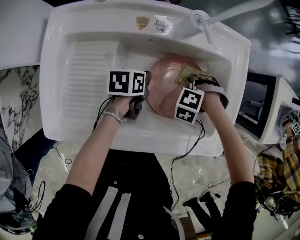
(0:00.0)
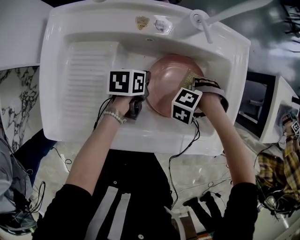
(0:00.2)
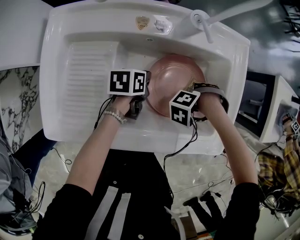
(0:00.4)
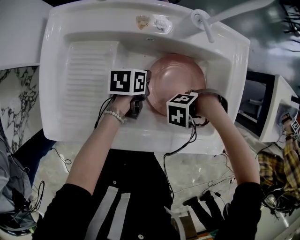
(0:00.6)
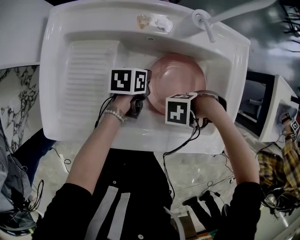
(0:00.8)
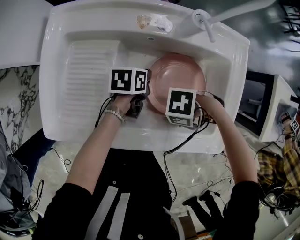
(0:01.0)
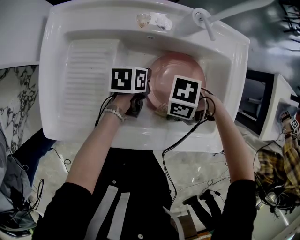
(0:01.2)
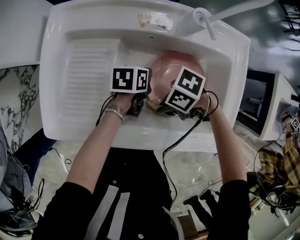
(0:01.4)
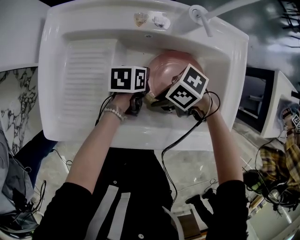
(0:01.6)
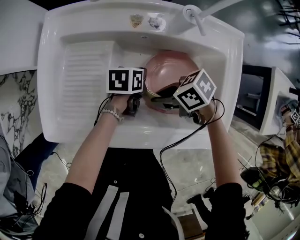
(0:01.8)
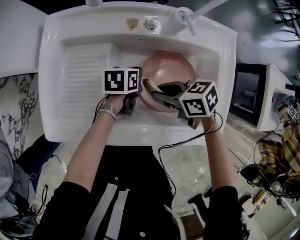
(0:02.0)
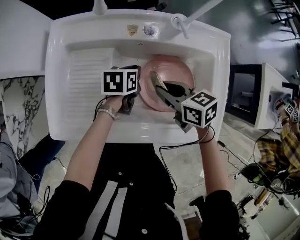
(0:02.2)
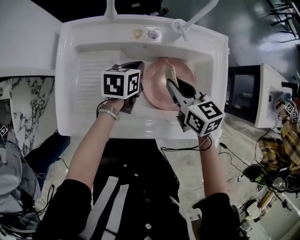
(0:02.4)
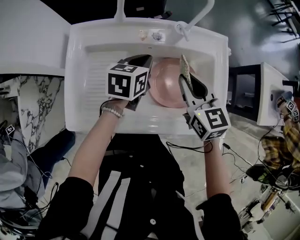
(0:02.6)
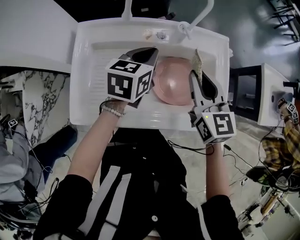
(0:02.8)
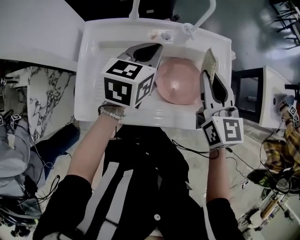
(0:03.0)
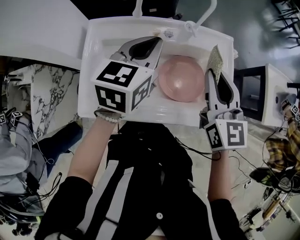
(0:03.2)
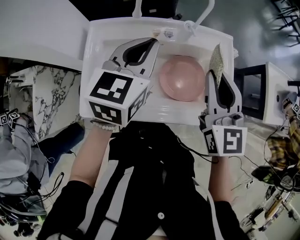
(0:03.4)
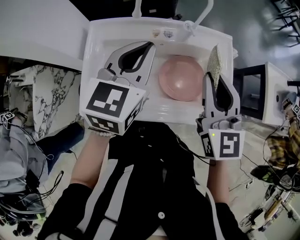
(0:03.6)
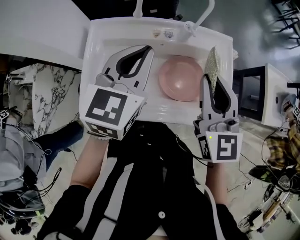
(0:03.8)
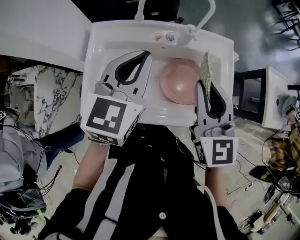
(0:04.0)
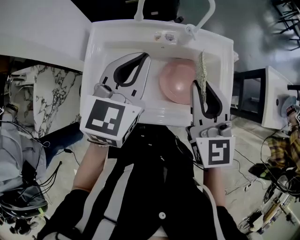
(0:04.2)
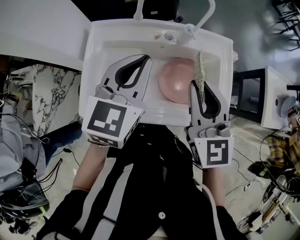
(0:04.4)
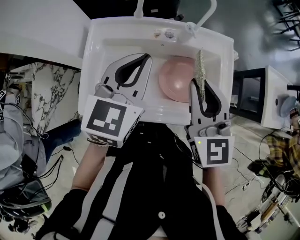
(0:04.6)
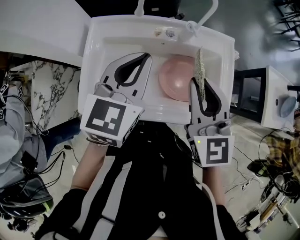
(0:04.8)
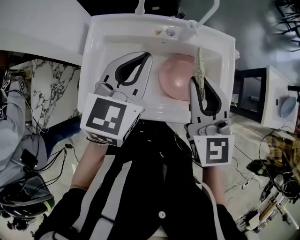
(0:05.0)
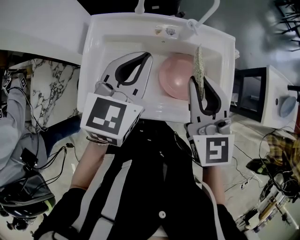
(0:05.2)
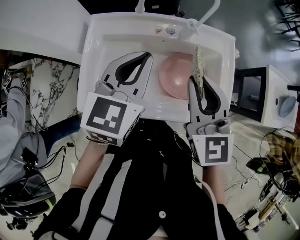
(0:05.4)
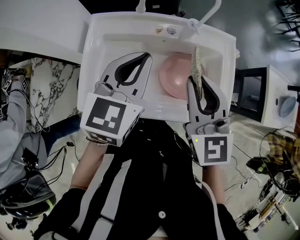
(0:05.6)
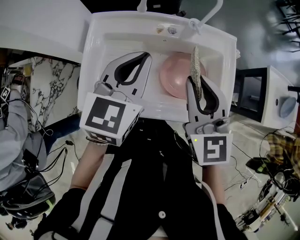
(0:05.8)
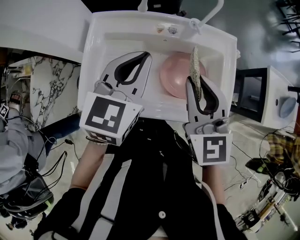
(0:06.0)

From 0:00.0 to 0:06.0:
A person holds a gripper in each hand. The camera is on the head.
From 0:00.0 to 0:01.6: The right gripper moves roughly 20 cm, and points its fingers about 30 degrees further upward.
From 0:01.6 to 0:03.0: Both grippers travel together upward, approximately 30 cm. The left gripper turns by about 40 degrees; the right gripper turns by some 100 degrees.
From 0:03.0 to 0:04.4: The left gripper shifts some 10 cm upward and backward. Meanwhile the right gripper travels upward by about 5 cm.
From 0:04.4 to 0:06.0: The grippers move only a little.

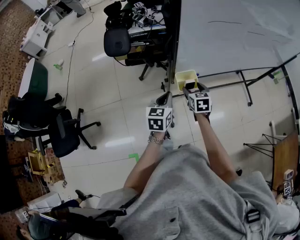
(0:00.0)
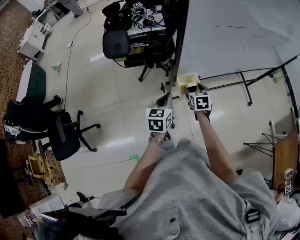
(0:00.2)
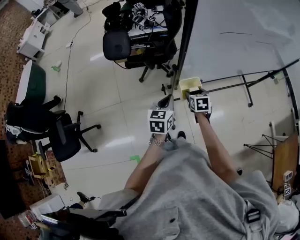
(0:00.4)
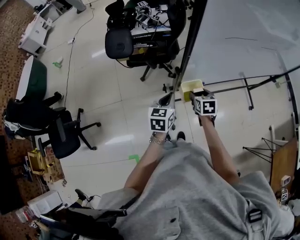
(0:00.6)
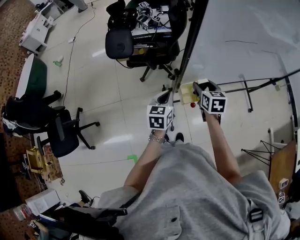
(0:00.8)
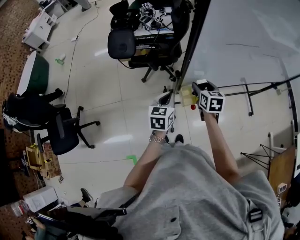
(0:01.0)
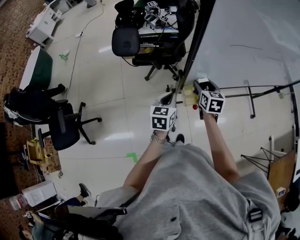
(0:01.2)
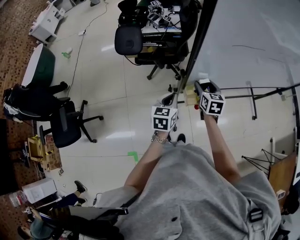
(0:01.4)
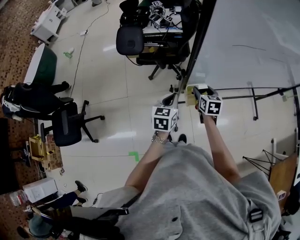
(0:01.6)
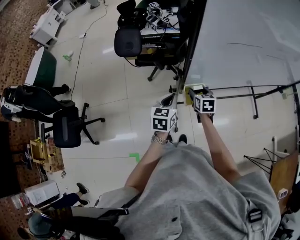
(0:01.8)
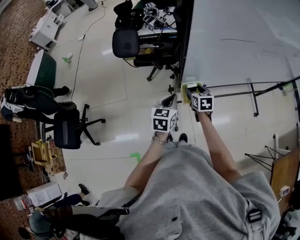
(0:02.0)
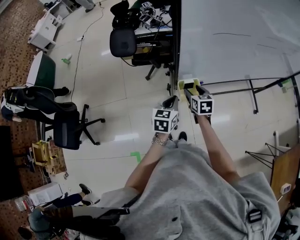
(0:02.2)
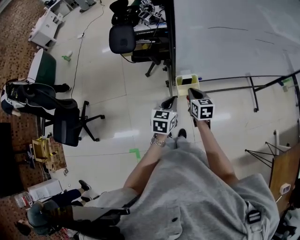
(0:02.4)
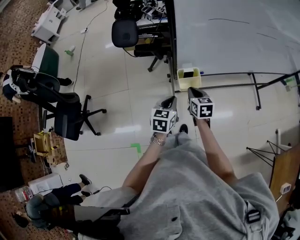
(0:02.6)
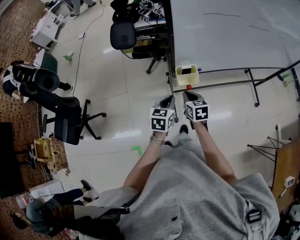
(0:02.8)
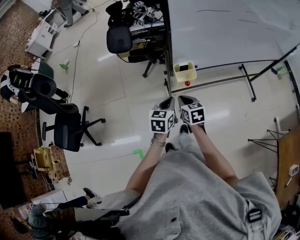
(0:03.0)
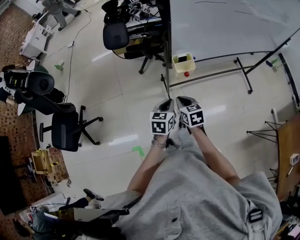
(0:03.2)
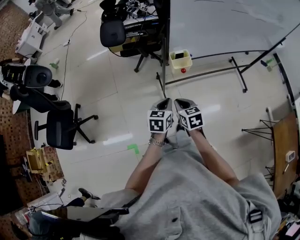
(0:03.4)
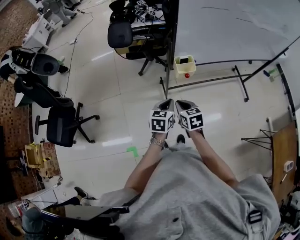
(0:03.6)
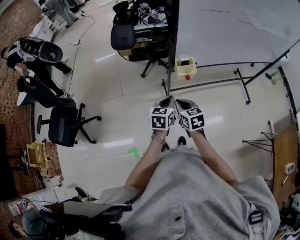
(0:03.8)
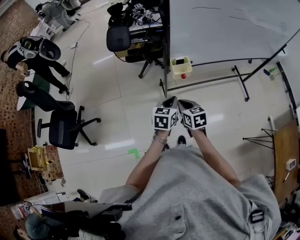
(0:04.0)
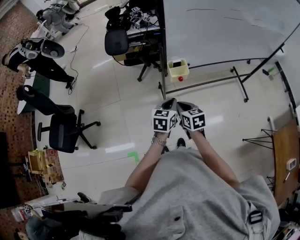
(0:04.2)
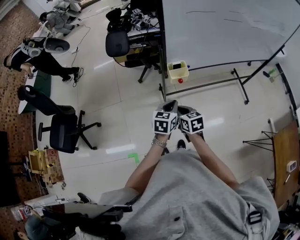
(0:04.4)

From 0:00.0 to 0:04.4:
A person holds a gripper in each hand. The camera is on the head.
From 0:00.0 to 0:01.4: Both grippers move forward, approximately 10 cm.
From 0:01.4 to 0:03.0: The two grippers go some 20 cm backward. The right gripper closes up.
From 0:03.0 to 0:04.4: The right gripper moves backward, about 10 cm; the left gripper goes roughly 5 cm backward.

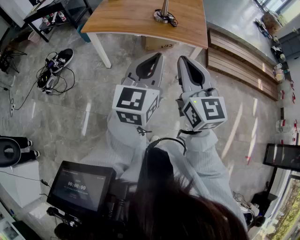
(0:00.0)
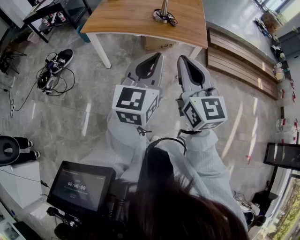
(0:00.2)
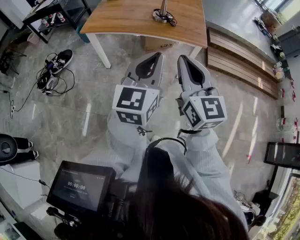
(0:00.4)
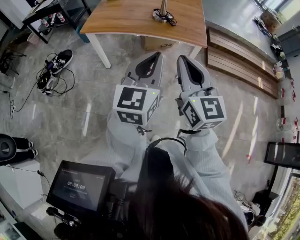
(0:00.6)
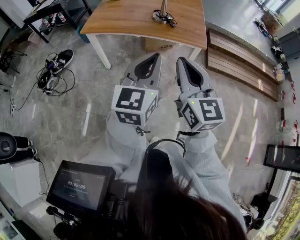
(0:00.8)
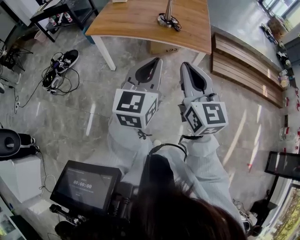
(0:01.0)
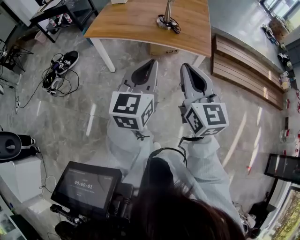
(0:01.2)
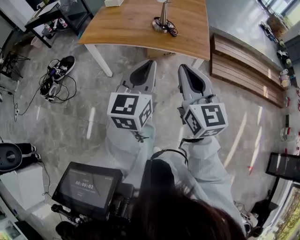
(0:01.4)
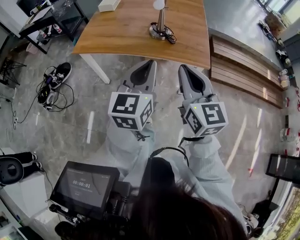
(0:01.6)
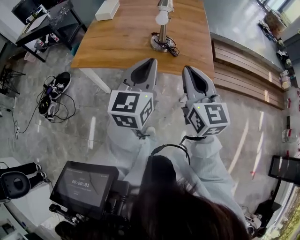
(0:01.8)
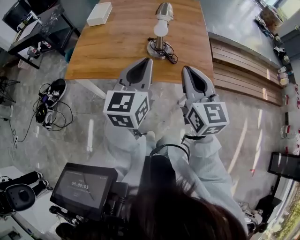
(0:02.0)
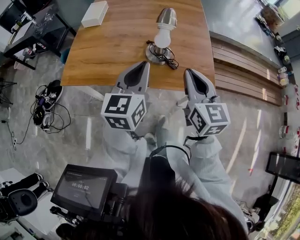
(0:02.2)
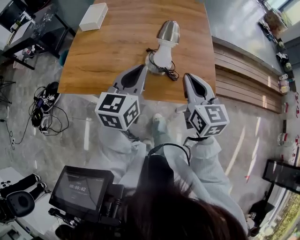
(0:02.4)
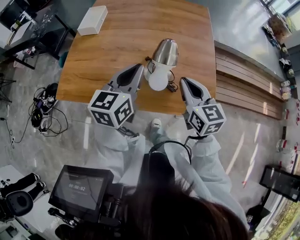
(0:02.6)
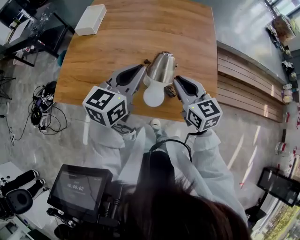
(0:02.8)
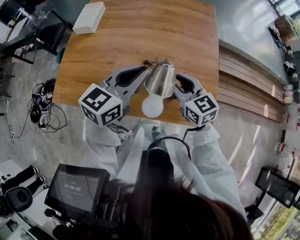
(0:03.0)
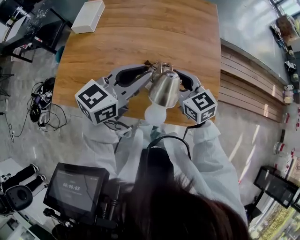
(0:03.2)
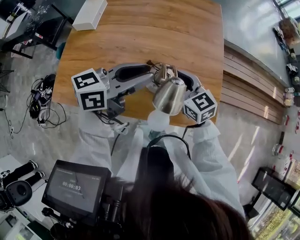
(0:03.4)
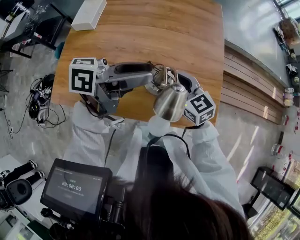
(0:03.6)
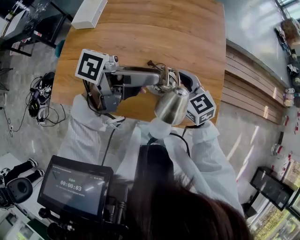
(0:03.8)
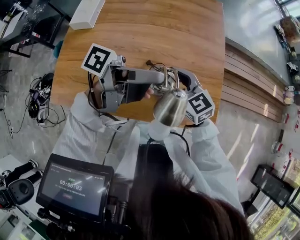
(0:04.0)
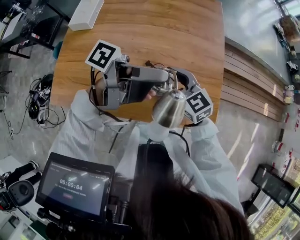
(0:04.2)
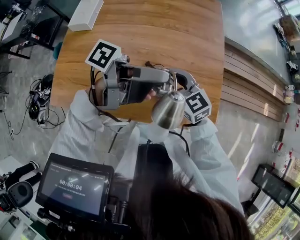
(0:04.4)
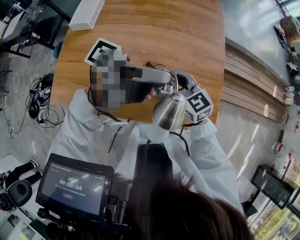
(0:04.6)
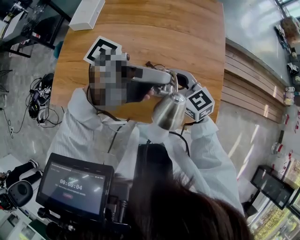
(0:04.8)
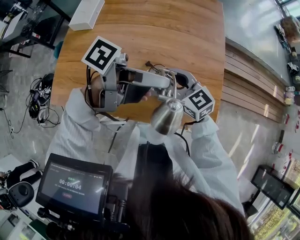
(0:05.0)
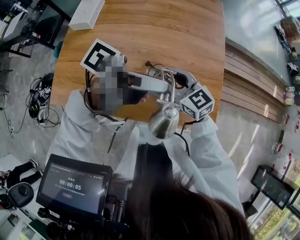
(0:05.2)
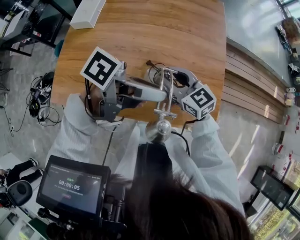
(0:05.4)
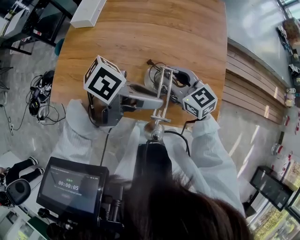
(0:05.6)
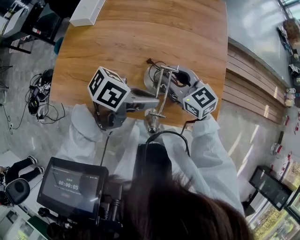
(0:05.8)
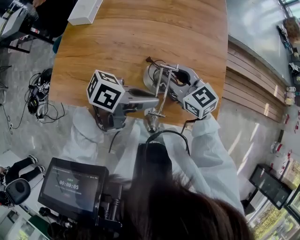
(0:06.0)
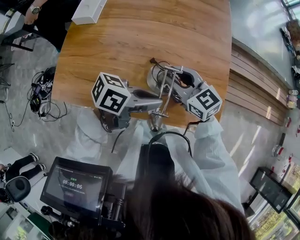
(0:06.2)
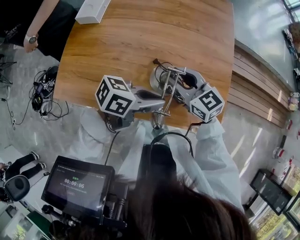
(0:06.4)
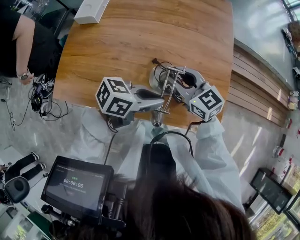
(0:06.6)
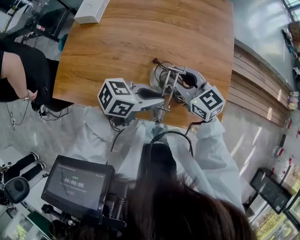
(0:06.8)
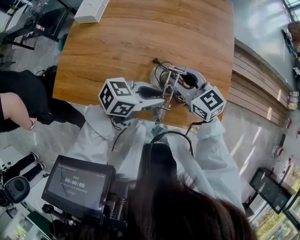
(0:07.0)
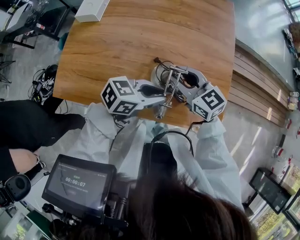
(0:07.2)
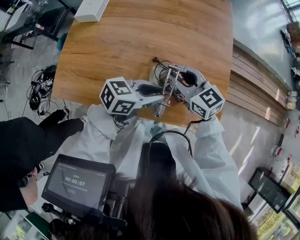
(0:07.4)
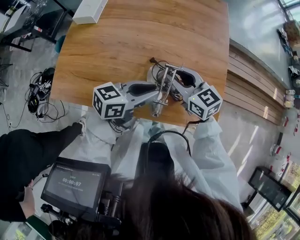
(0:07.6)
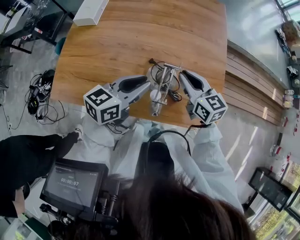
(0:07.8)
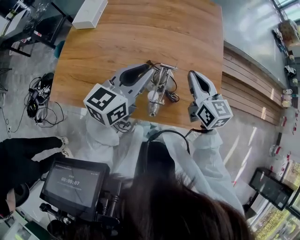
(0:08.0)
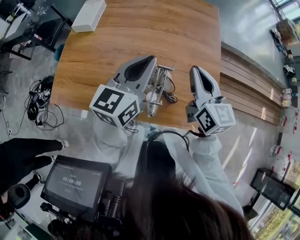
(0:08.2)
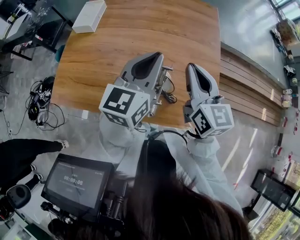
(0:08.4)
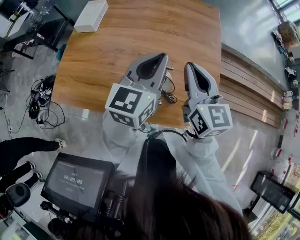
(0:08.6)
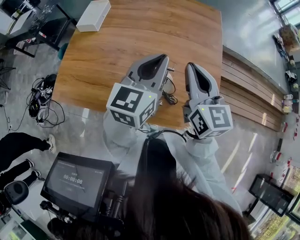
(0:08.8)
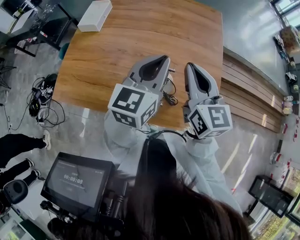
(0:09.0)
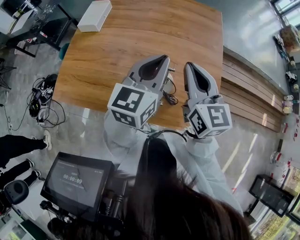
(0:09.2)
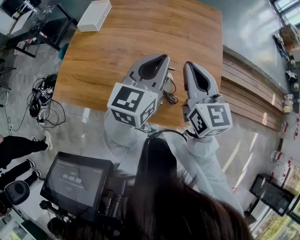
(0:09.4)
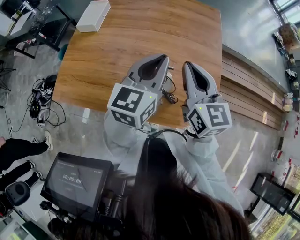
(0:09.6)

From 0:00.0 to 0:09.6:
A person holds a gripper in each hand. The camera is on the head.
From 0:00.0 to 0:01.6: The grippers both shift forward by about 20 cm.
From 0:01.6 to 0:03.2: The pair of grippers is taken forward, about 50 cm. The left gripper turns by approximately 30 degrees. Meanwhile the right gripper changes its angle by about 30 degrees, and opens.
From 0:03.2 to 0:04.8: The left gripper ends up about 5 cm from where it was, rolls counterclockwise, seen from behind, by some 60 degrees, and opens up.
From 0:04.8 to 0:06.4: The left gripper goes some 10 cm downward, changes its angle by some 40 degrees, and closes its fingers.
From 0:06.4 to 0:08.0: The left gripper ends up some 10 cm from where it was, and turns by approximately 50 degrees. Meanwhile the right gripper changes place by about 10 cm, changes its angle by roughly 30 degrees, and closes up.
From 0:08.0 to 0:09.6: The left gripper heads upward, covering roughly 5 cm; the right gripper shifts roughly 10 cm upward.

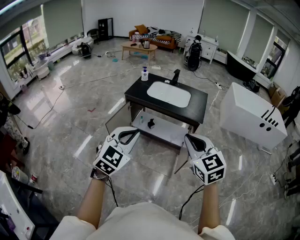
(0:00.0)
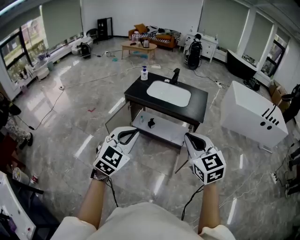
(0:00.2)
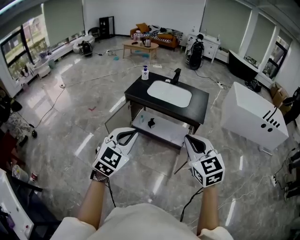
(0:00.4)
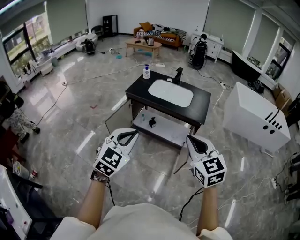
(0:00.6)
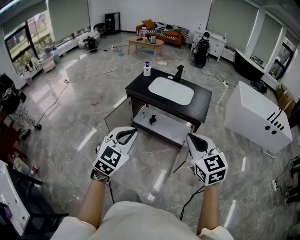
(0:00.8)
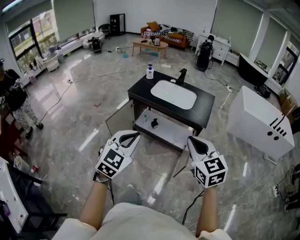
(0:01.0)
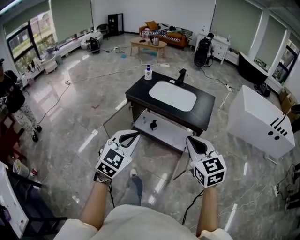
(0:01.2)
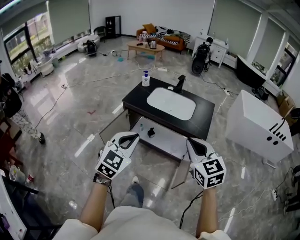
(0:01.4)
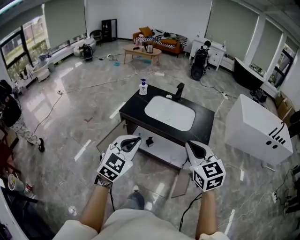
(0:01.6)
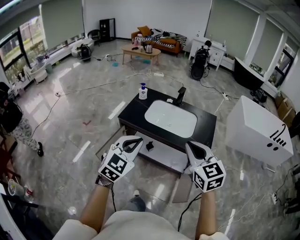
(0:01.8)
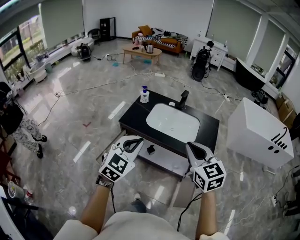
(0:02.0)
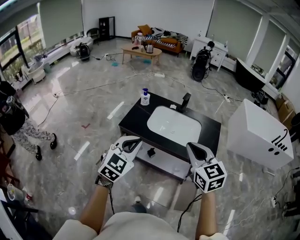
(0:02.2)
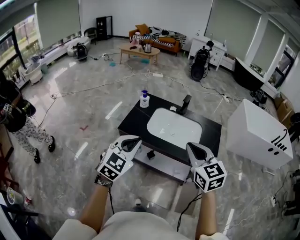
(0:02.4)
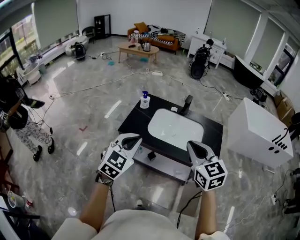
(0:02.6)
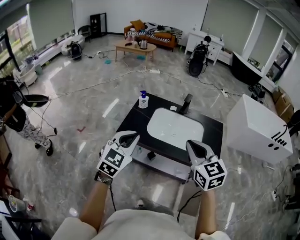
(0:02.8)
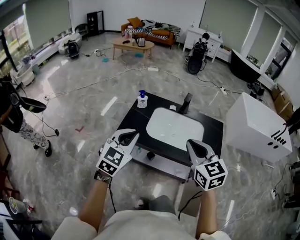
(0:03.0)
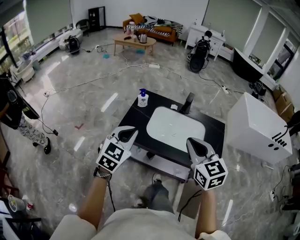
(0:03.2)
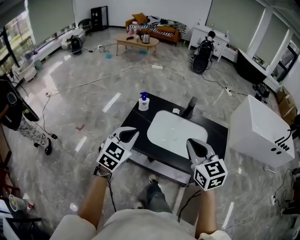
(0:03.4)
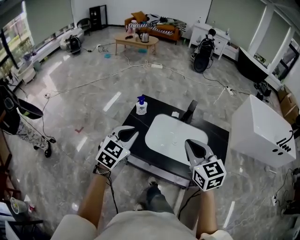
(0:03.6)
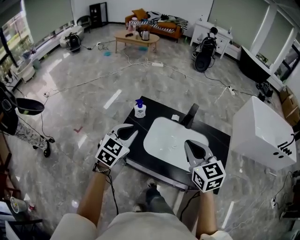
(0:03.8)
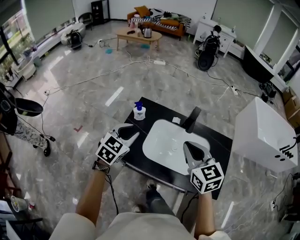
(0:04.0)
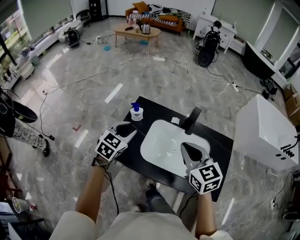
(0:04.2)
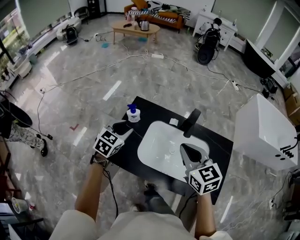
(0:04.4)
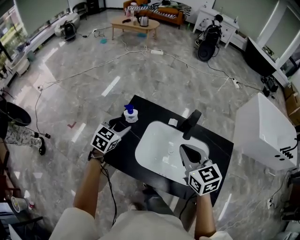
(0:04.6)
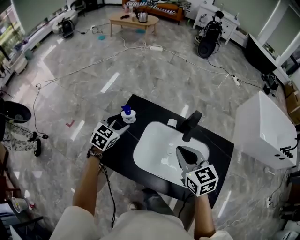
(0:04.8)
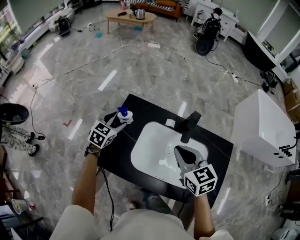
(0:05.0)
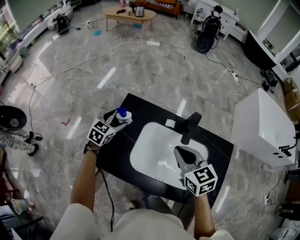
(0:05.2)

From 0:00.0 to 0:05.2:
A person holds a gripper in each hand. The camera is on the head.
From 0:00.0 to 0:01.8: The grippers both shift forward by roughly 30 cm.
From 0:01.8 to 0:03.4: Both grippers travel together forward, some 30 cm.
From 0:03.4 to 0:05.2: Both grippers move forward and downward, about 35 cm. The left gripper opens its fingers.
